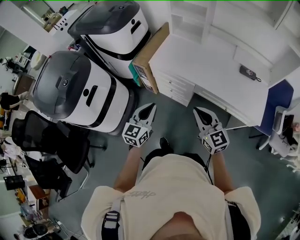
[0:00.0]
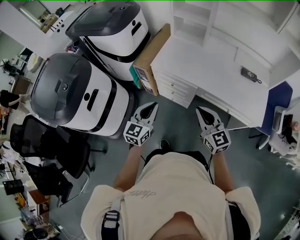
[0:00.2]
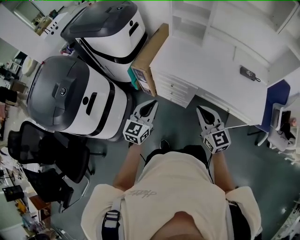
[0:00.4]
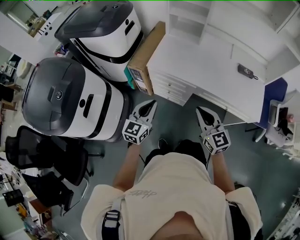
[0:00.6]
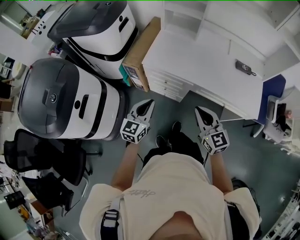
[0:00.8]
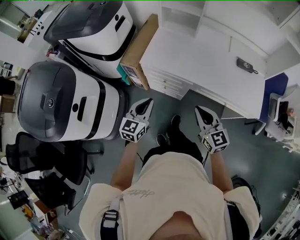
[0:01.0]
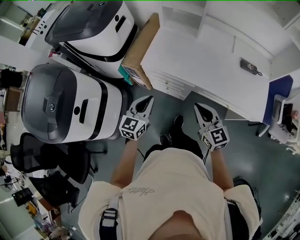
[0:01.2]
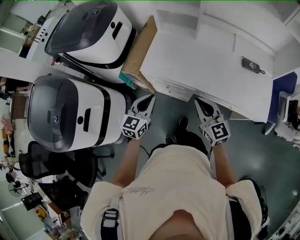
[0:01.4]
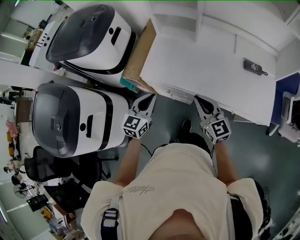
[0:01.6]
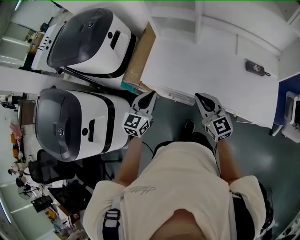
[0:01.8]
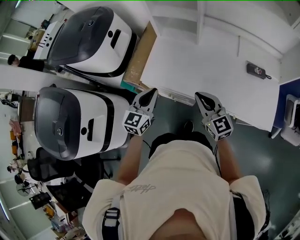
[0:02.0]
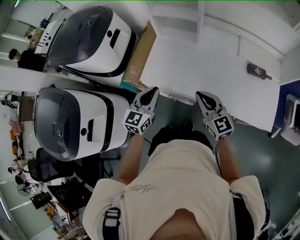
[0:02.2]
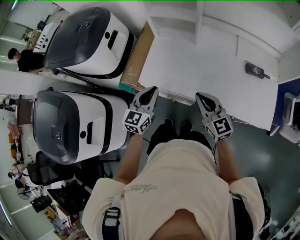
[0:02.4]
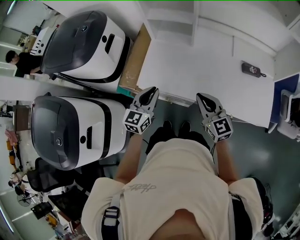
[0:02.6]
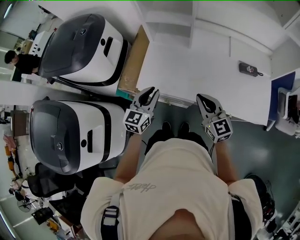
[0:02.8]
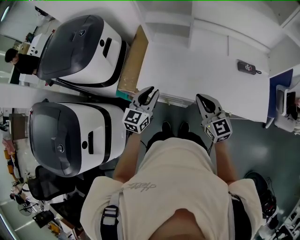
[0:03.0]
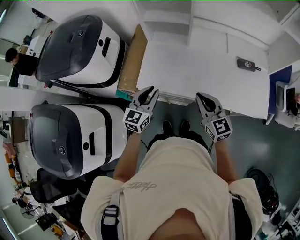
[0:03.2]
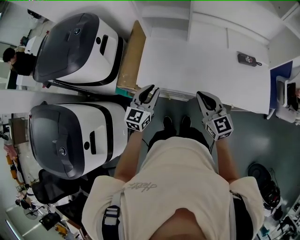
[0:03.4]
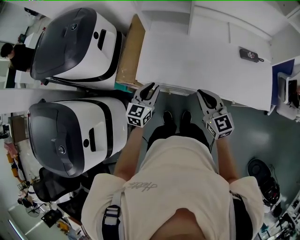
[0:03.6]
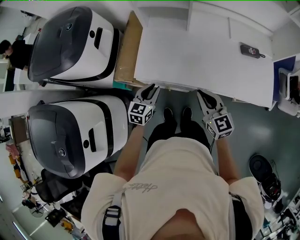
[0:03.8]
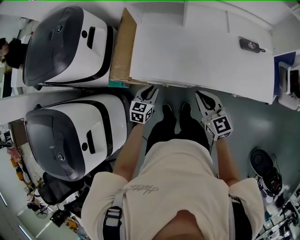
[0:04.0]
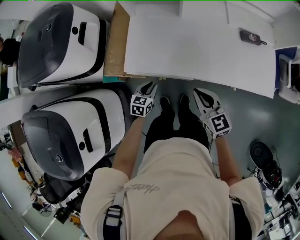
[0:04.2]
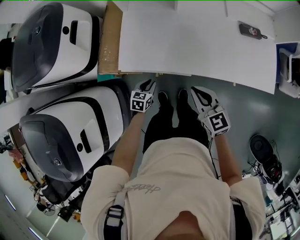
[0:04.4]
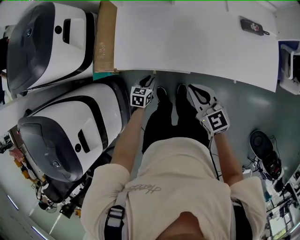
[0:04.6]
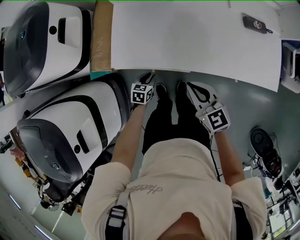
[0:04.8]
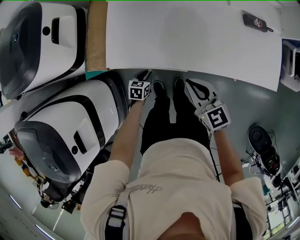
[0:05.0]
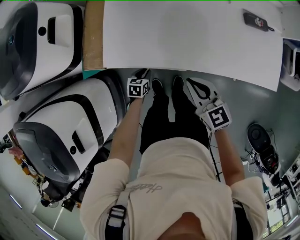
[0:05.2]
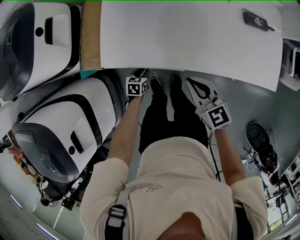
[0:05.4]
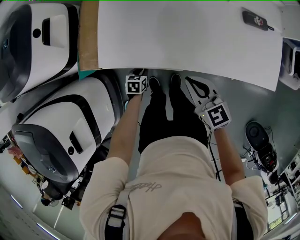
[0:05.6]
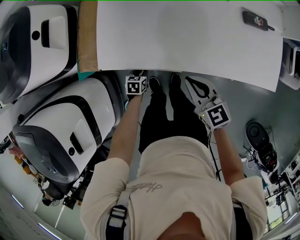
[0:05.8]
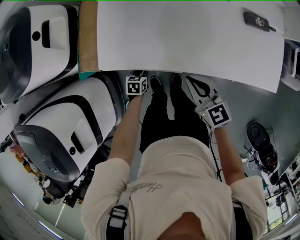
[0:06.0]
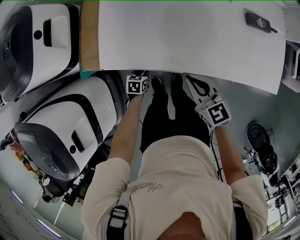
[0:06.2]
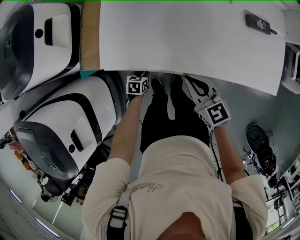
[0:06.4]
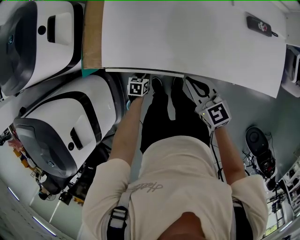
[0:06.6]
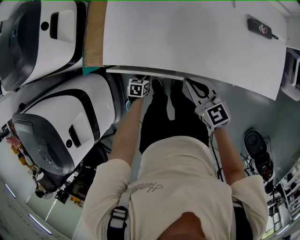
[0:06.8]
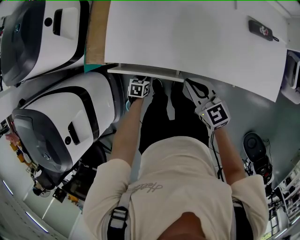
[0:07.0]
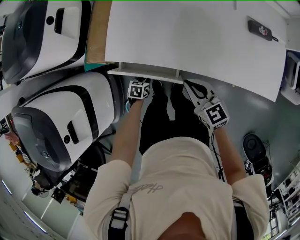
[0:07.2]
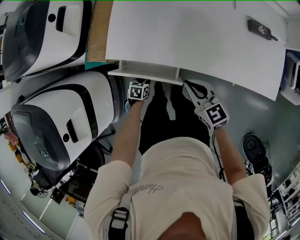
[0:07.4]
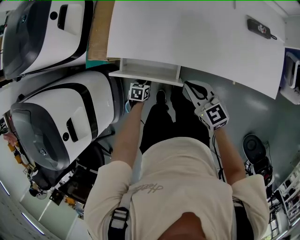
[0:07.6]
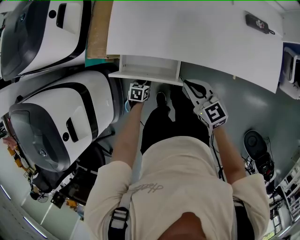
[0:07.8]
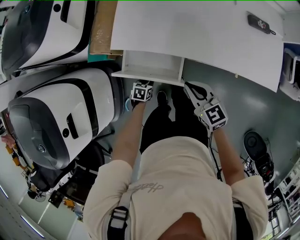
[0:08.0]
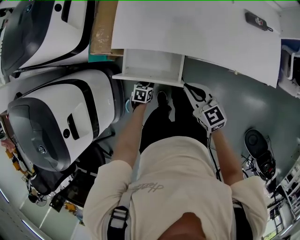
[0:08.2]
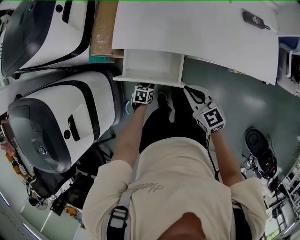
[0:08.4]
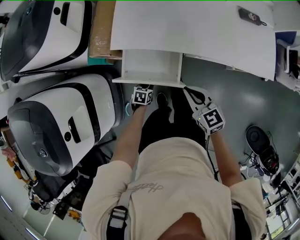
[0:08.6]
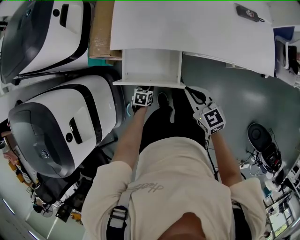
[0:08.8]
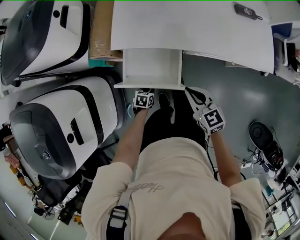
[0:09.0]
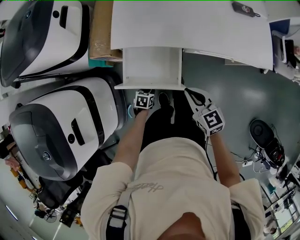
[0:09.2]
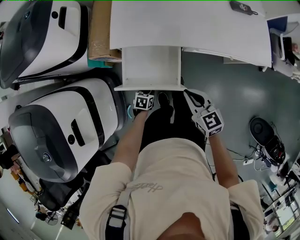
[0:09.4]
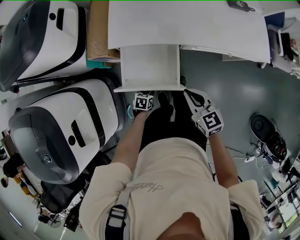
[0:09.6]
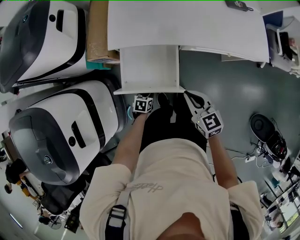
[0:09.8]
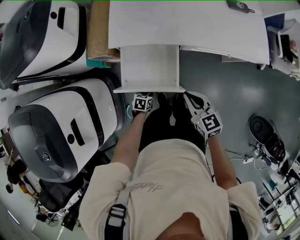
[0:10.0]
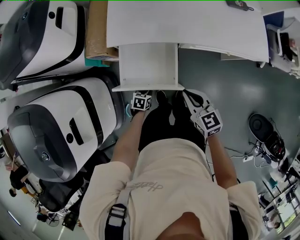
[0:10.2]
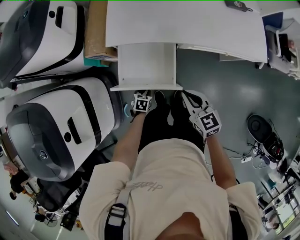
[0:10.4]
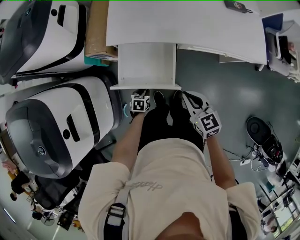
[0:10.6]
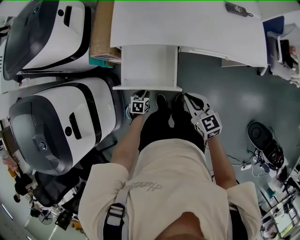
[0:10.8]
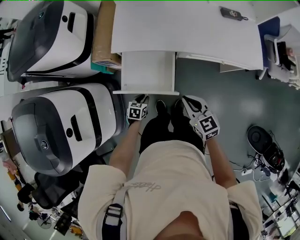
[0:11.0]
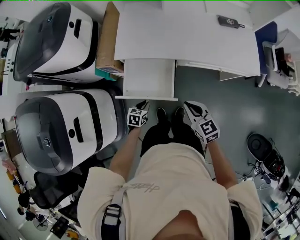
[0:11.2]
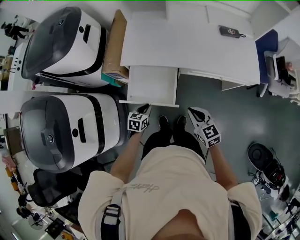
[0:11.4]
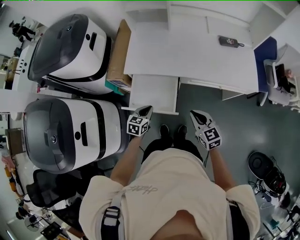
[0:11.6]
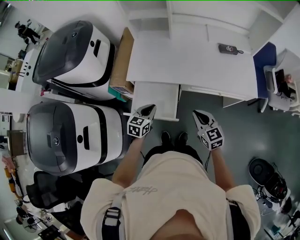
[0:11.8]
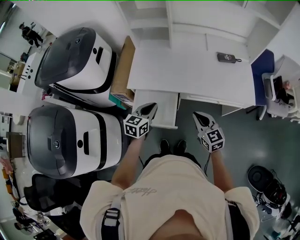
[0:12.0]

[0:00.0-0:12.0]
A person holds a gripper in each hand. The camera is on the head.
0:00.0 to 0:01.6: The grippers both shift forward by roughly 20 cm.
0:01.6 to 0:03.0: The left gripper heads forward, covering roughly 10 cm, while the right gripper travels forward by approximately 5 cm.
0:03.0 to 0:04.4: The left gripper shifts roughly 30 cm downward, and tilts its fingers about 30 degrees downward. Meanwhile the right gripper shifts some 15 cm downward.
0:04.4 to 0:06.0: The right gripper heads downward and forward, covering about 10 cm, while the left gripper shifts some 15 cm downward.
0:06.0 to 0:07.6: The right gripper goes about 5 cm backward, while the left gripper goes some 10 cm backward.
0:07.6 to 0:09.0: The two grippers go roughly 10 cm backward.
0:09.0 to 0:10.4: The right gripper goes roughly 5 cm backward.
0:10.4 to 0:12.0: The right gripper moves upward and to the right, roughly 15 cm. The left gripper travels upward by about 40 cm, and tilts its fingers roughly 40 degrees upward.

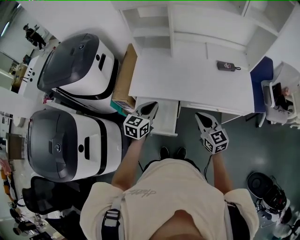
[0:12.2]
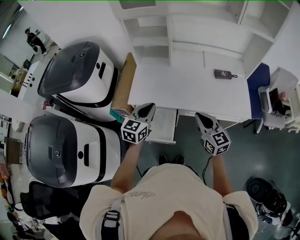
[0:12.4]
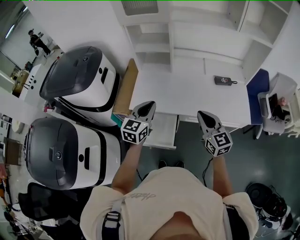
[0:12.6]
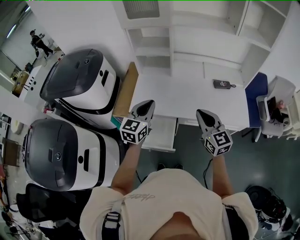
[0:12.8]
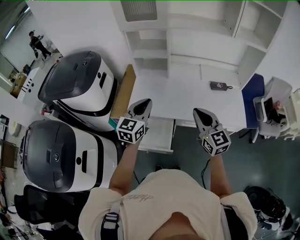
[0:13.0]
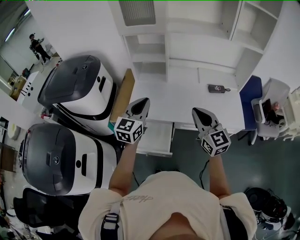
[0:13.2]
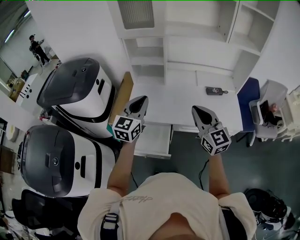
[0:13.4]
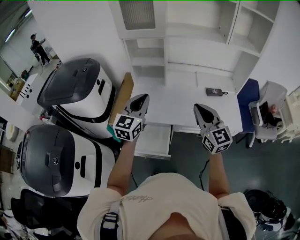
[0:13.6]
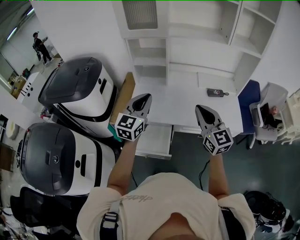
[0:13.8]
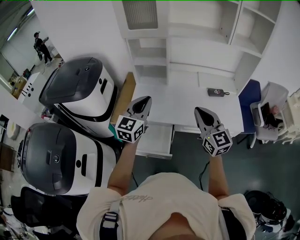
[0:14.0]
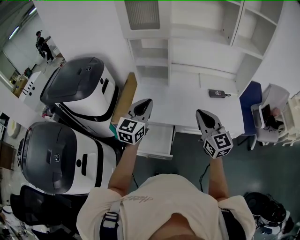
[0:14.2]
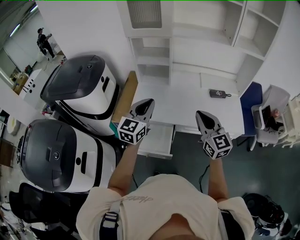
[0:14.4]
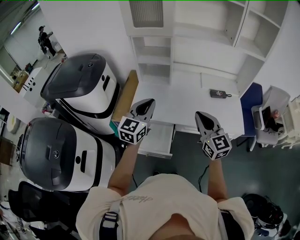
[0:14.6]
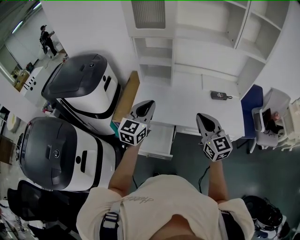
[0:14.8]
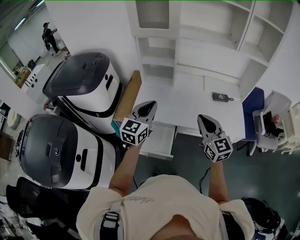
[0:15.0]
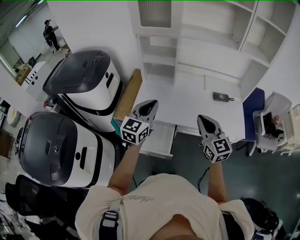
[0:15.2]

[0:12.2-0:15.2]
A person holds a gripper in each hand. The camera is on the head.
0:12.2 to 0:13.8: Both grippers travel together upward, roughly 20 cm. The right gripper rotates approximately 20 degrees, while the left gripper turns by some 30 degrees.
0:13.8 to 0:15.2: The grippers stay close to where they were, moving slightly.

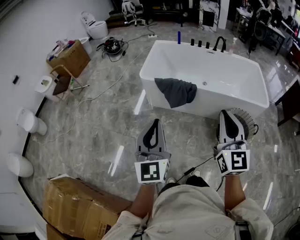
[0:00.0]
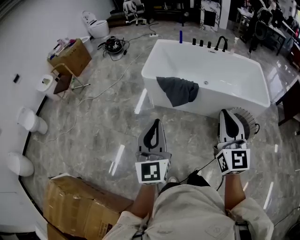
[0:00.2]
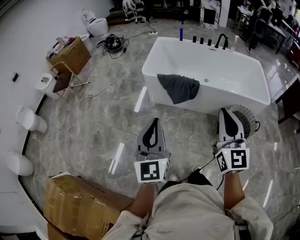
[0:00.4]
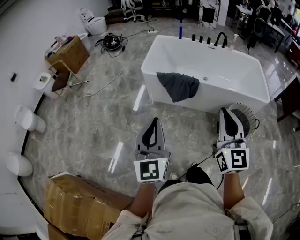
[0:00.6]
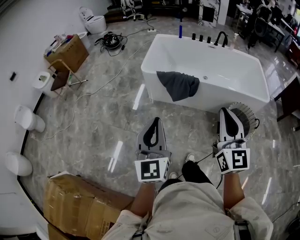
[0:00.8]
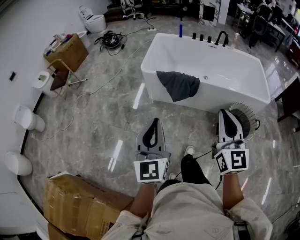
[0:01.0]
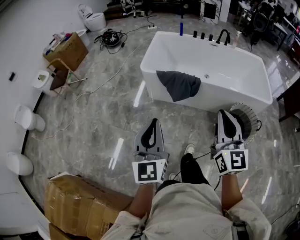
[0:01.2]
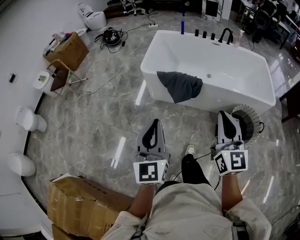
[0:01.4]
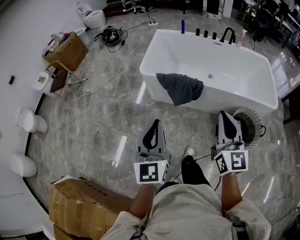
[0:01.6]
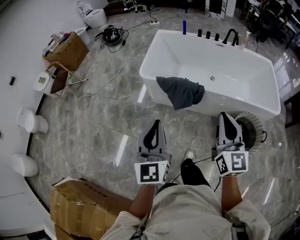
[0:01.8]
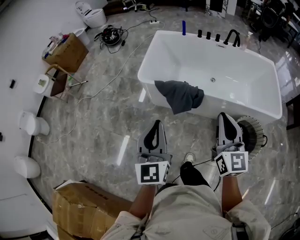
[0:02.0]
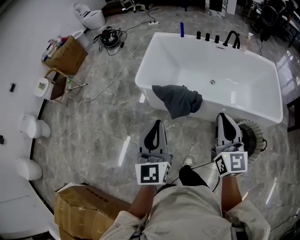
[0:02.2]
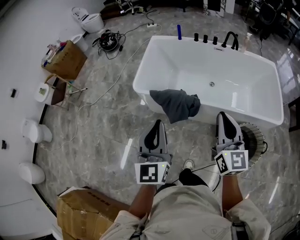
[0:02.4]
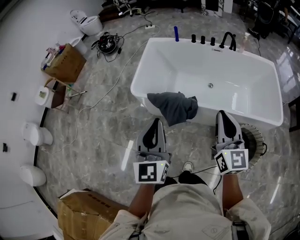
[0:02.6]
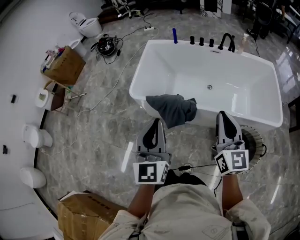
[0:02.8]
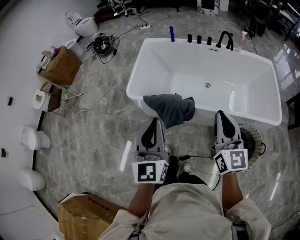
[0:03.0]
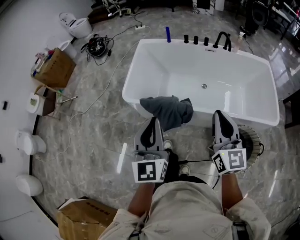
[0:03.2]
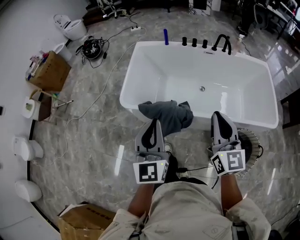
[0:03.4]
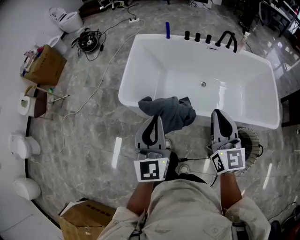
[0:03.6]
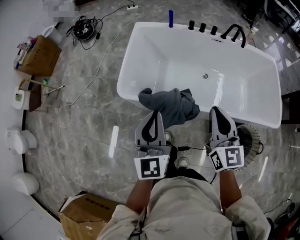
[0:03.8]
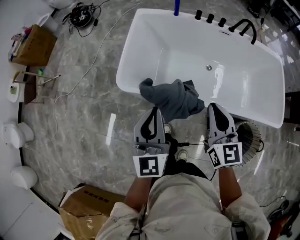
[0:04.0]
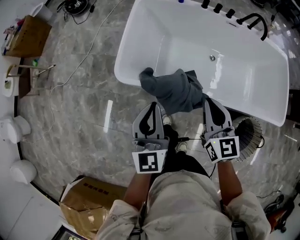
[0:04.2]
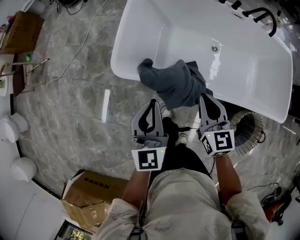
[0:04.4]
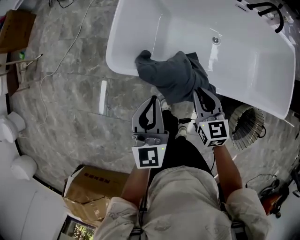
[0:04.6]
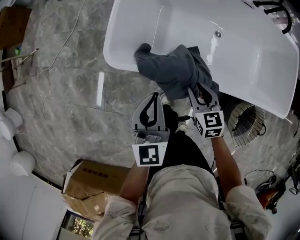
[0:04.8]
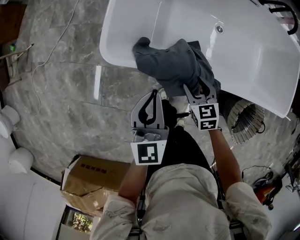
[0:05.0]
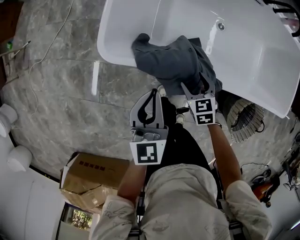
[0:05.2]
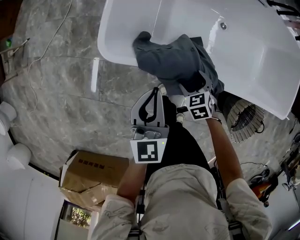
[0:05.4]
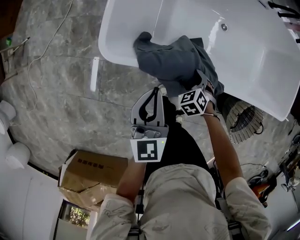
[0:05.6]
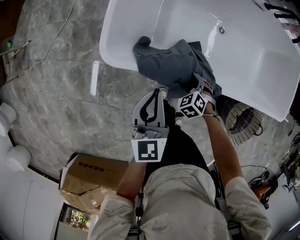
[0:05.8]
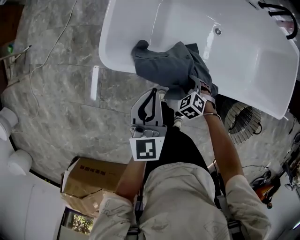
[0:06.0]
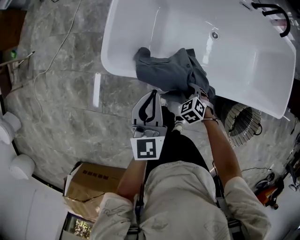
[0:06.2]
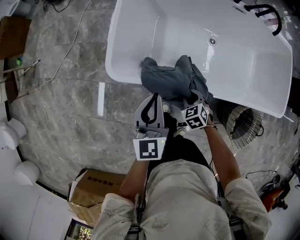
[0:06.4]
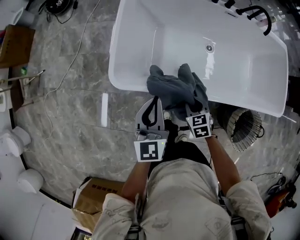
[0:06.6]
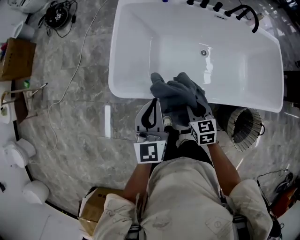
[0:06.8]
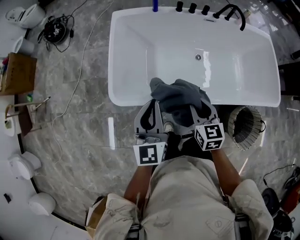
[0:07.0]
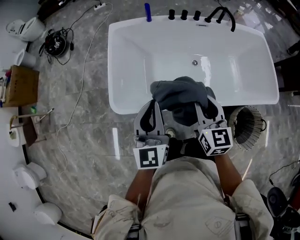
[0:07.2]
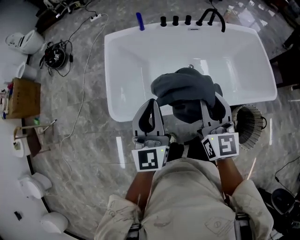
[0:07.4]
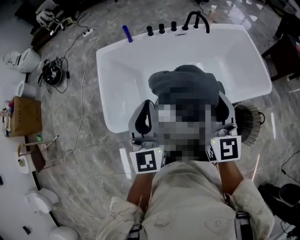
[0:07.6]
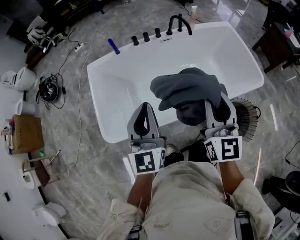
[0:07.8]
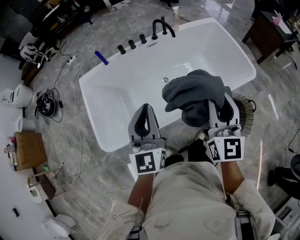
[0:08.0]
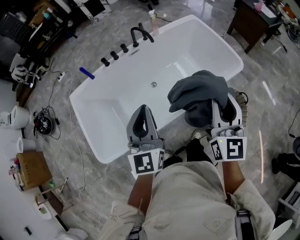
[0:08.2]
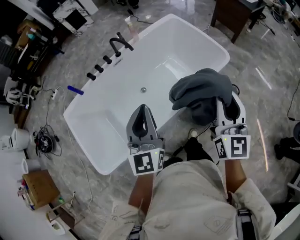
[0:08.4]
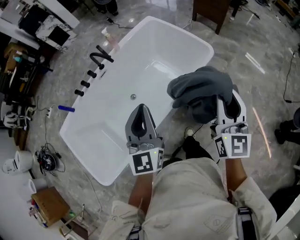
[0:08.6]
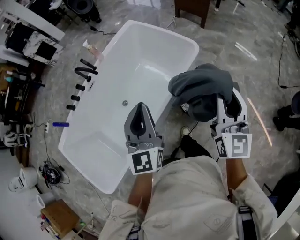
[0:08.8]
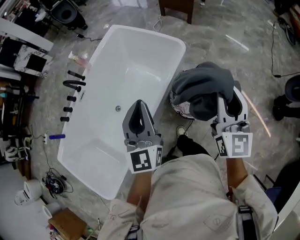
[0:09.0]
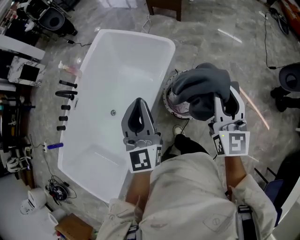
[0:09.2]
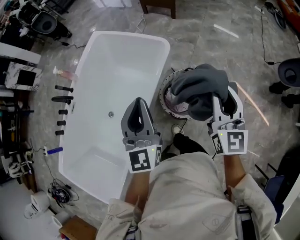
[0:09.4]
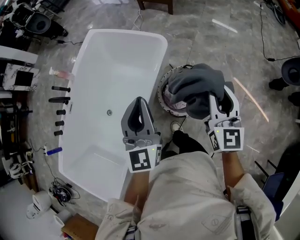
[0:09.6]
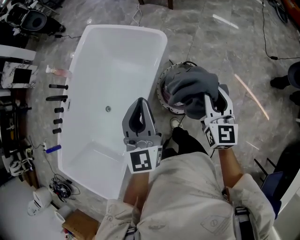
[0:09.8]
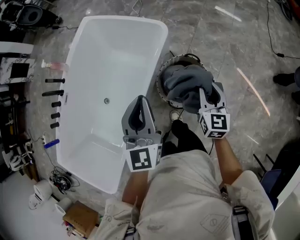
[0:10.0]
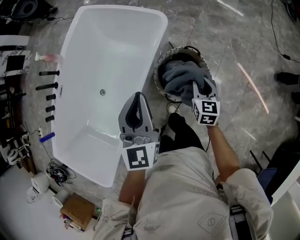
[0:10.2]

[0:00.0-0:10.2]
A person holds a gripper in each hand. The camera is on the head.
0:00.0 to 0:01.4: The right gripper goes about 10 cm forward and downward. Meanwhile the left gripper heads forward, covering roughly 5 cm.
0:01.4 to 0:03.0: Both grippers move forward and to the right, approximately 35 cm.
0:03.0 to 0:04.4: The two grippers go some 40 cm forward, downward and to the left. The right gripper rotates approximately 30 degrees.
0:04.4 to 0:05.8: The right gripper moves downward, approximately 30 cm, angles its fingers downward, by about 40 degrees, and opens its fingers, while the left gripper goes roughly 15 cm downward.
0:05.8 to 0:07.2: The left gripper is displaced upward by approximately 25 cm, and changes its angle by roughly 20 degrees, while the right gripper is displaced upward by about 40 cm, angles its fingers upward, by roughly 50 degrees, and closes its fingers.
0:07.2 to 0:08.8: The two grippers travel together, about 60 cm. The left gripper changes its angle by about 50 degrees. Meanwhile the right gripper rotates about 60 degrees.
0:08.8 to 0:10.2: The left gripper travels to the right, forward and downward by roughly 25 cm, while the right gripper heads downward, covering approximately 35 cm, and tilts its fingers some 40 degrees downward.
